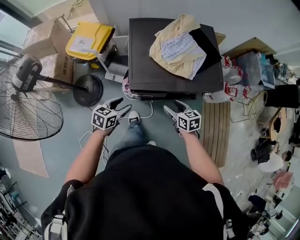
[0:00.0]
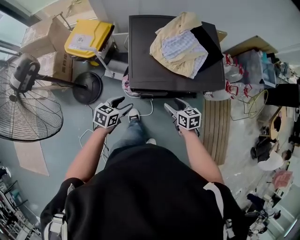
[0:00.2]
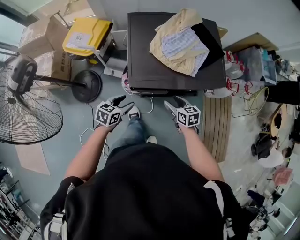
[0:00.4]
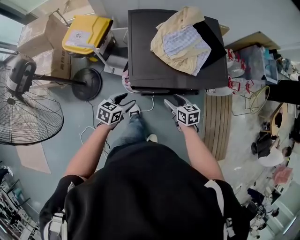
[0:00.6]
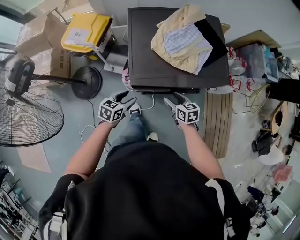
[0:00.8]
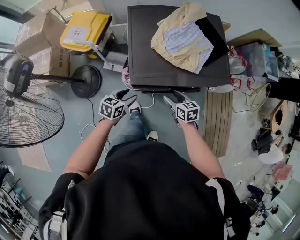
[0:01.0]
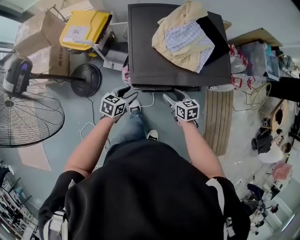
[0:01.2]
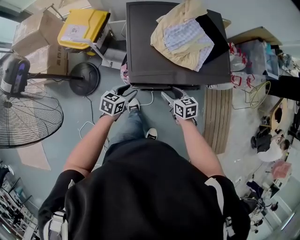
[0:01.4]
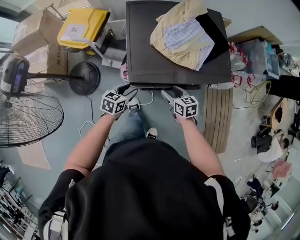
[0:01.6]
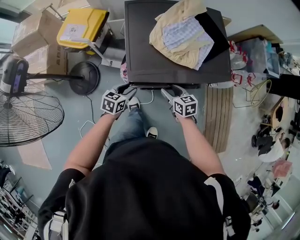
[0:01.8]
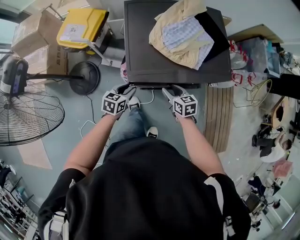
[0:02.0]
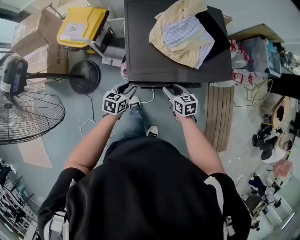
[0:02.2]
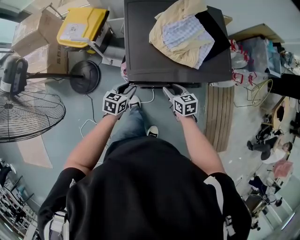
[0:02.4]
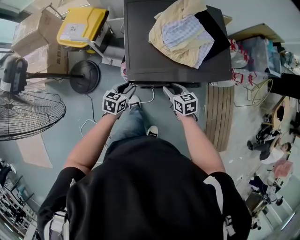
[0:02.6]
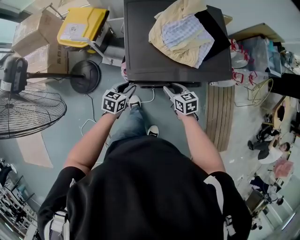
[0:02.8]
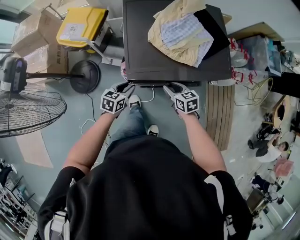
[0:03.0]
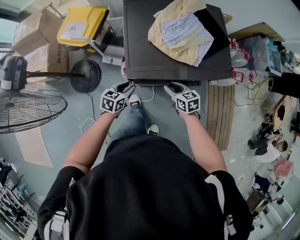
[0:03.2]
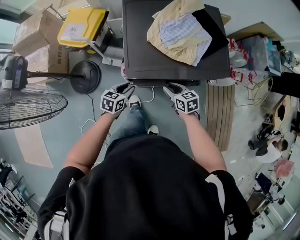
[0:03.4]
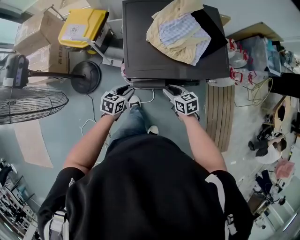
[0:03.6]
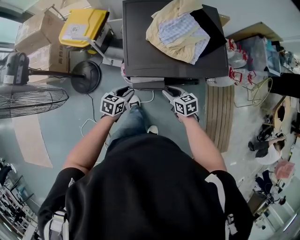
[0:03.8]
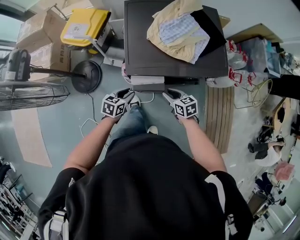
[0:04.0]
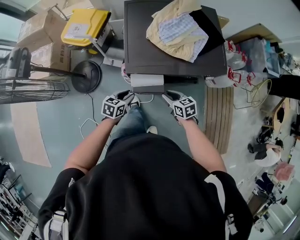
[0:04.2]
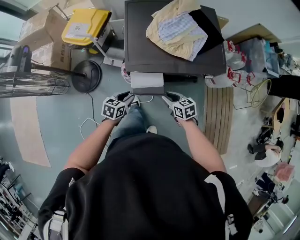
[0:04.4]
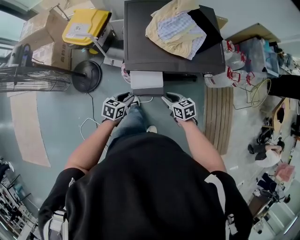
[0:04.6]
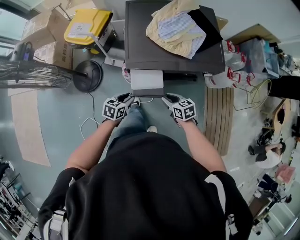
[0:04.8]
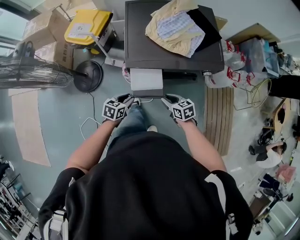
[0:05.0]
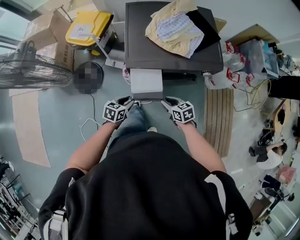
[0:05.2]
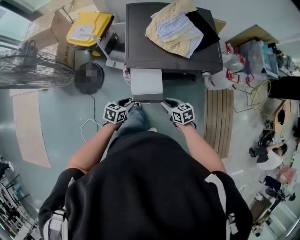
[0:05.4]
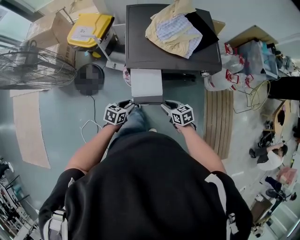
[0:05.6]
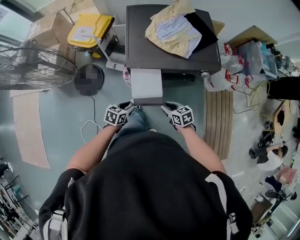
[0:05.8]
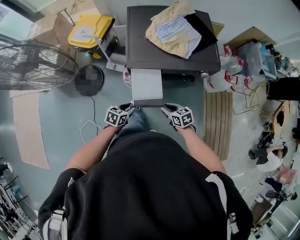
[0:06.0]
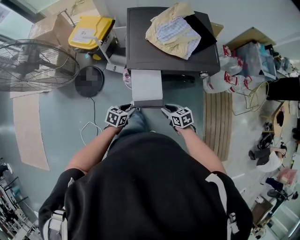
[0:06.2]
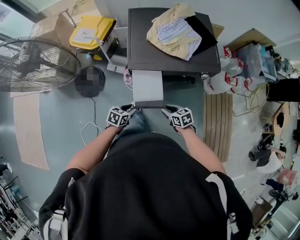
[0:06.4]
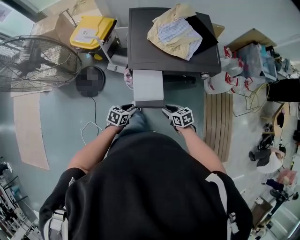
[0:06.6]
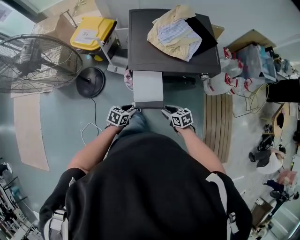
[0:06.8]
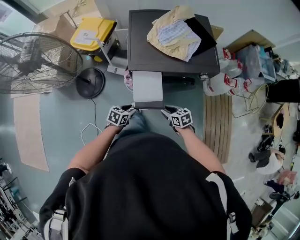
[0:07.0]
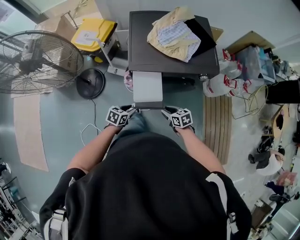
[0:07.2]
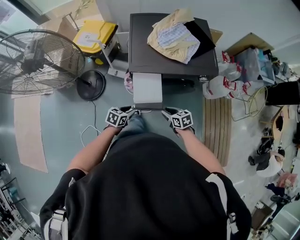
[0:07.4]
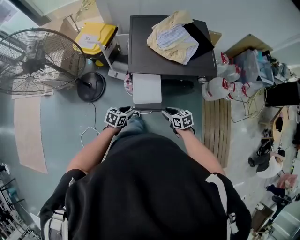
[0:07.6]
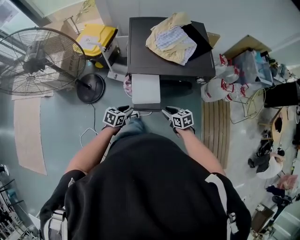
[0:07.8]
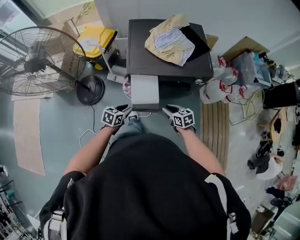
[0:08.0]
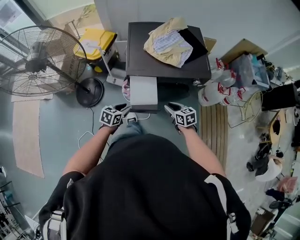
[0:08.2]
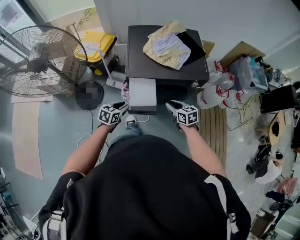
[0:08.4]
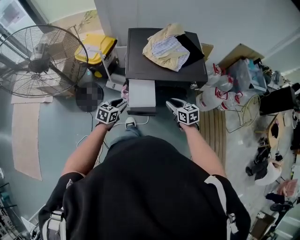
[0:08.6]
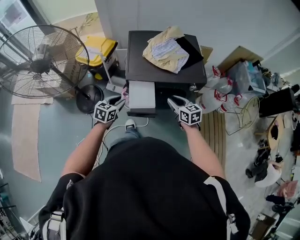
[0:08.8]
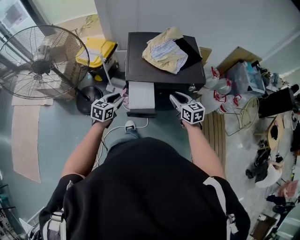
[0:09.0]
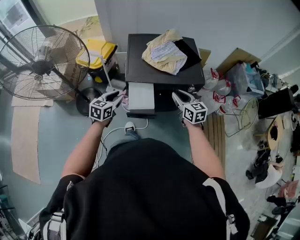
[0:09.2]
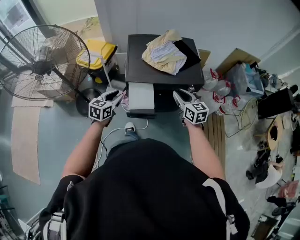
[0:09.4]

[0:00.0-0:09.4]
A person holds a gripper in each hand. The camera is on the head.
0:00.0 to 0:01.6: Both grippers move downward, roughly 5 cm.
0:01.6 to 0:03.2: The right gripper closes its fingers.
0:03.2 to 0:04.8: The grippers both shift backward by approximately 10 cm.
0:04.8 to 0:06.2: Both grippers travel together backward, some 5 cm.
0:06.2 to 0:07.8: The grippers stay close to where they were, moving slightly.
0:07.8 to 0:09.4: Both grippers travel together upward, some 20 cm. The right gripper turns by about 30 degrees, while the left gripper swivels some 30 degrees.

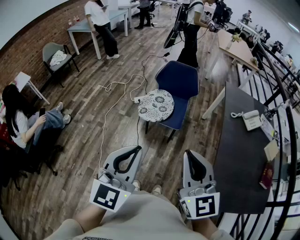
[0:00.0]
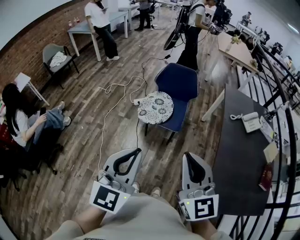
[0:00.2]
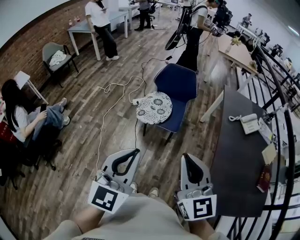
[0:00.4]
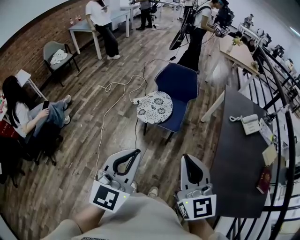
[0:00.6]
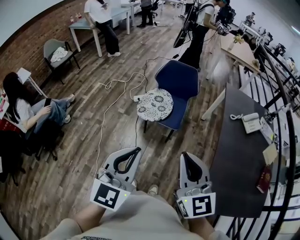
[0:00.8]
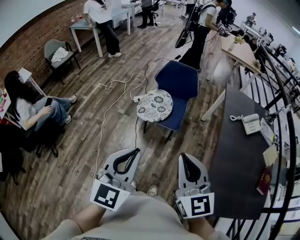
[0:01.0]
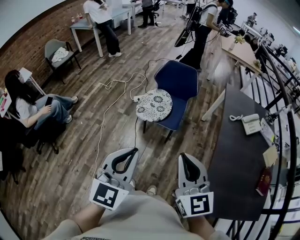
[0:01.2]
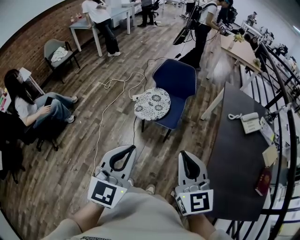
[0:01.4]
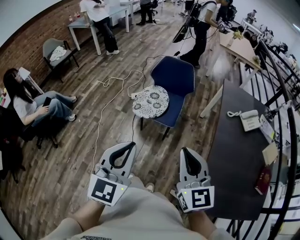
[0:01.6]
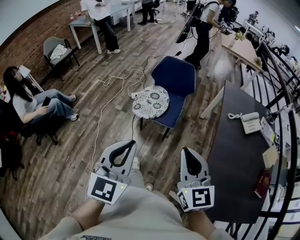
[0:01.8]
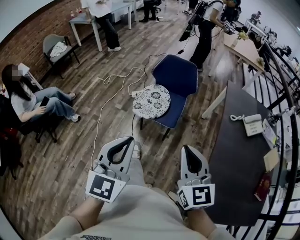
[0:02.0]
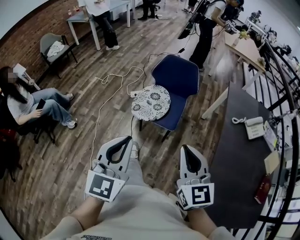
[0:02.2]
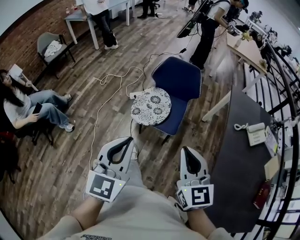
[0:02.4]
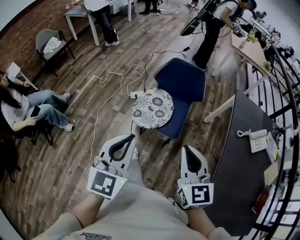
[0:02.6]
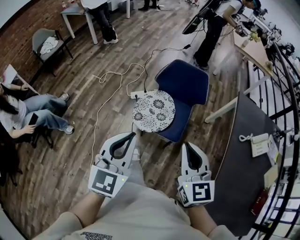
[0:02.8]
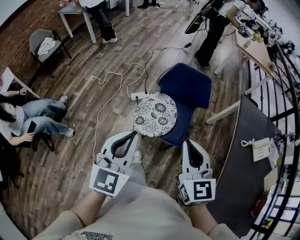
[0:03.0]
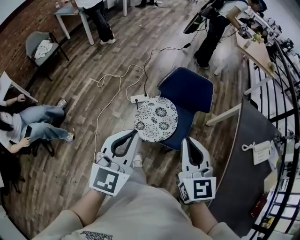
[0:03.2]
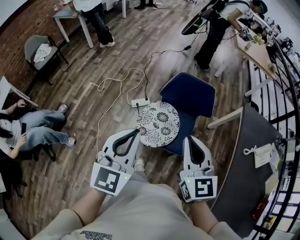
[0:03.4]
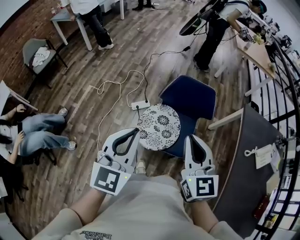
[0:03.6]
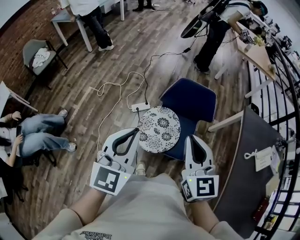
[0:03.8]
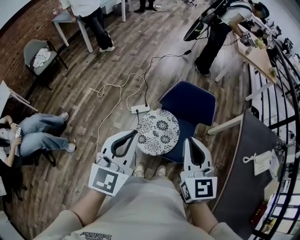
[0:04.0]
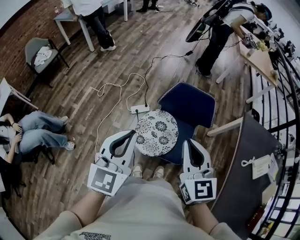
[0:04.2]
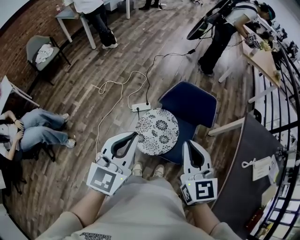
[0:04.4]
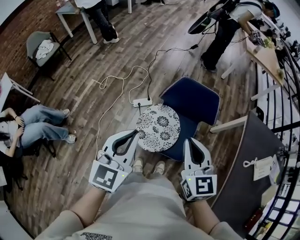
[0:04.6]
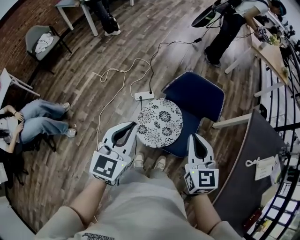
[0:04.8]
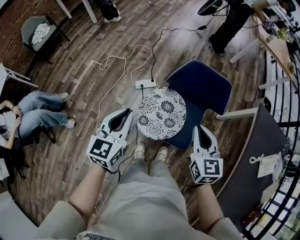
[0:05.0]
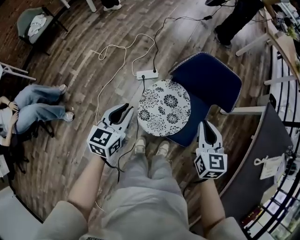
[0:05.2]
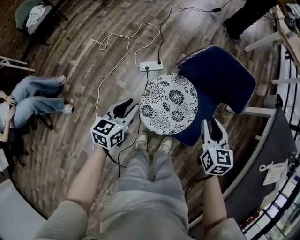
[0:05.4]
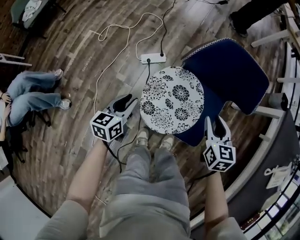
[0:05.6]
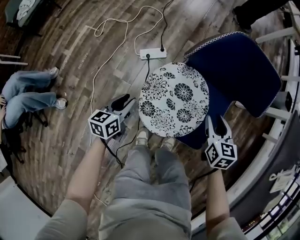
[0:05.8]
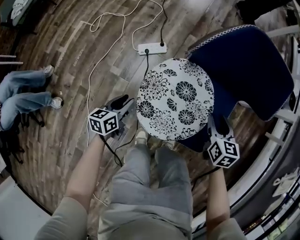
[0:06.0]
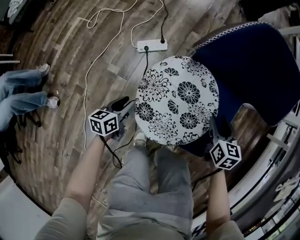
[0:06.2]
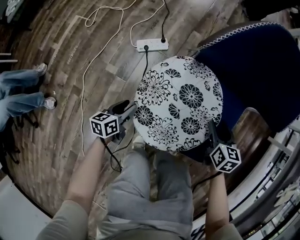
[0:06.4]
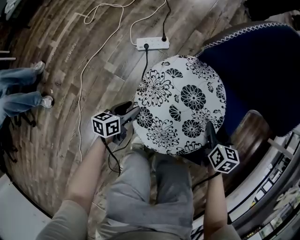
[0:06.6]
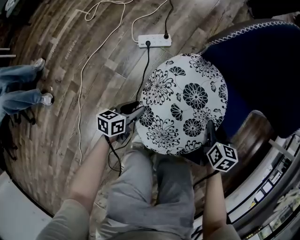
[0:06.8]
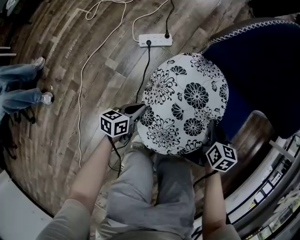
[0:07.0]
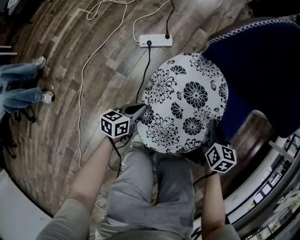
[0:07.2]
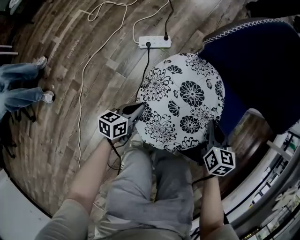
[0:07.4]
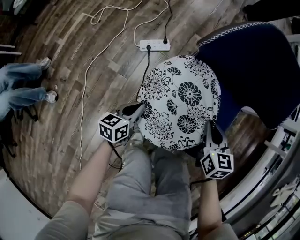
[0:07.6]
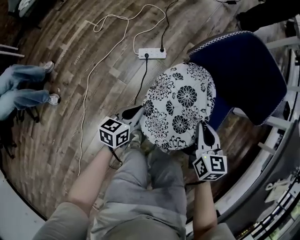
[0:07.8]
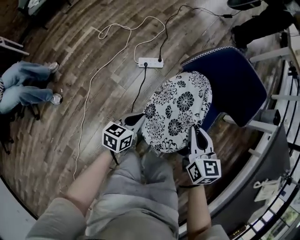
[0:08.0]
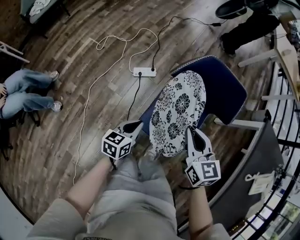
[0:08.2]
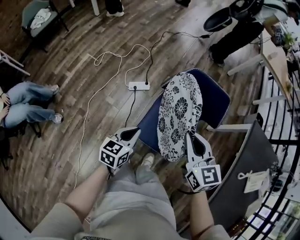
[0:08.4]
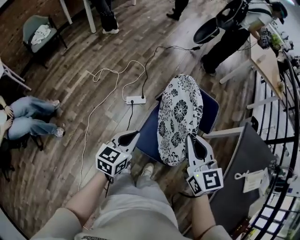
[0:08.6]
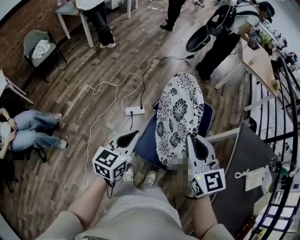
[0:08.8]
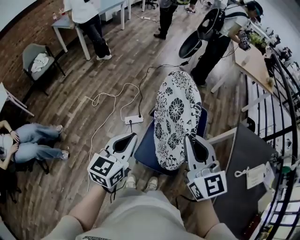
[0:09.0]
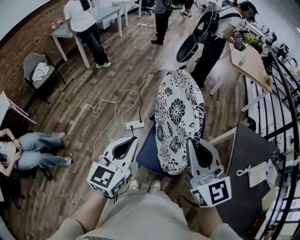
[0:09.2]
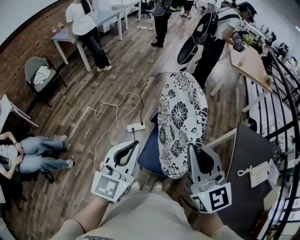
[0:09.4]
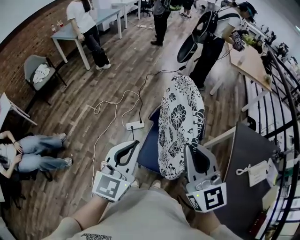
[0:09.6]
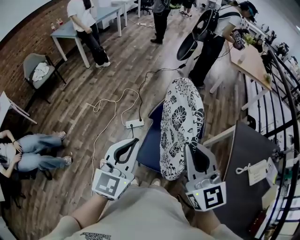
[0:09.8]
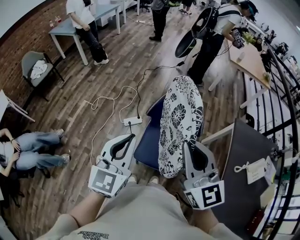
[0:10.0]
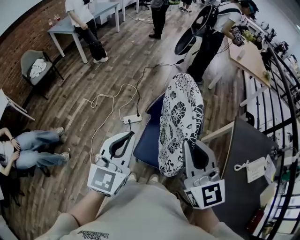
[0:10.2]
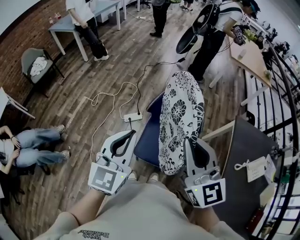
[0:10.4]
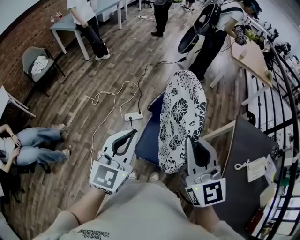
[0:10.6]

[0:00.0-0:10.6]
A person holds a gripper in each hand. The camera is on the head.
0:00.0 to 0:01.6: The left gripper shifts some 5 cm to the right; the right gripper is displaced to the right and downward by some 10 cm.
0:01.6 to 0:03.0: Both grippers move forward, approximately 35 cm.
0:03.0 to 0:04.6: Both grippers travel together forward, some 15 cm.
0:04.6 to 0:06.0: Both grippers travel together downward, about 60 cm. The left gripper rolls counterclockwise, seen from behind, by roughly 40 degrees, and opens; the right gripper rotates roughly 30 degrees, and opens up.
0:06.0 to 0:07.6: The left gripper goes roughly 5 cm to the right, goes downward and returns, about 15 cm each way, and closes its fingers. The right gripper reaches approximately 15 cm downward, then returns, and closes its fingers.
0:07.6 to 0:09.0: Both grippers travel together upward, about 60 cm. The left gripper rotates some 30 degrees, while the right gripper tilts its fingers about 40 degrees upward.
0:09.0 to 0:10.6: The left gripper moves upward, approximately 5 cm; the right gripper shifts by roughly 5 cm.

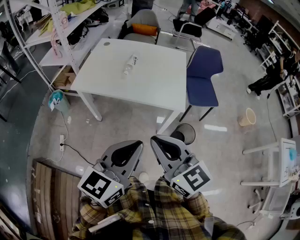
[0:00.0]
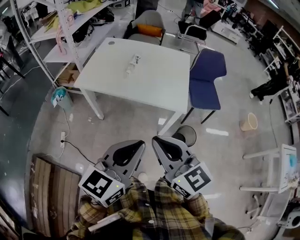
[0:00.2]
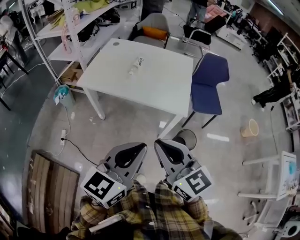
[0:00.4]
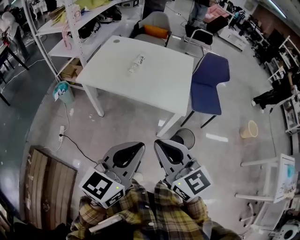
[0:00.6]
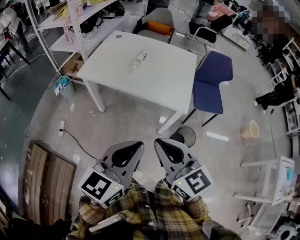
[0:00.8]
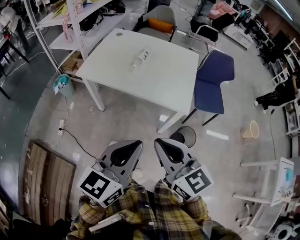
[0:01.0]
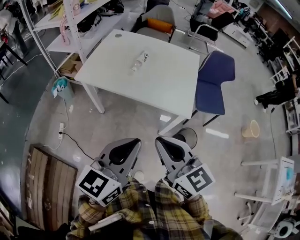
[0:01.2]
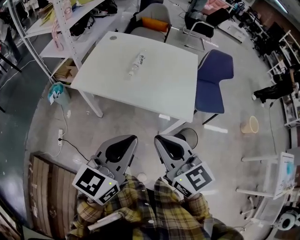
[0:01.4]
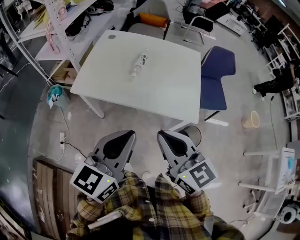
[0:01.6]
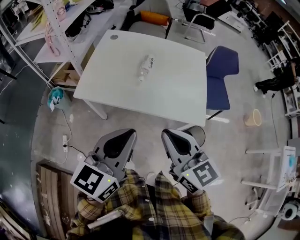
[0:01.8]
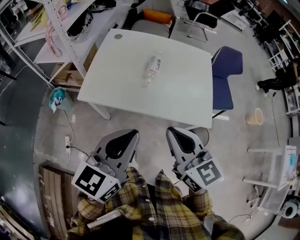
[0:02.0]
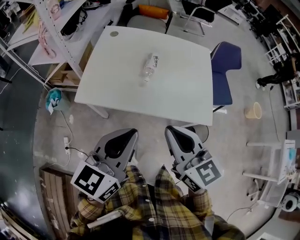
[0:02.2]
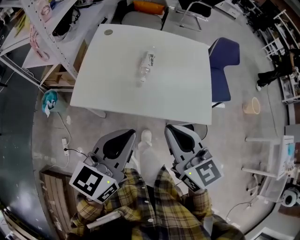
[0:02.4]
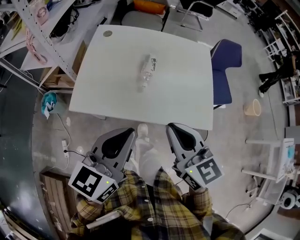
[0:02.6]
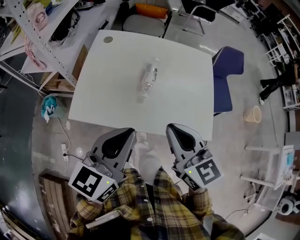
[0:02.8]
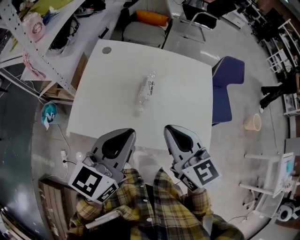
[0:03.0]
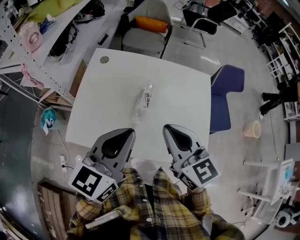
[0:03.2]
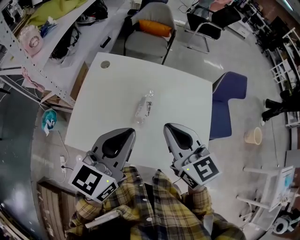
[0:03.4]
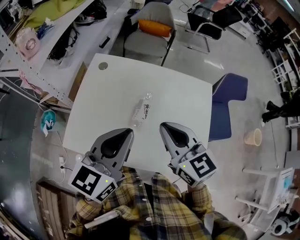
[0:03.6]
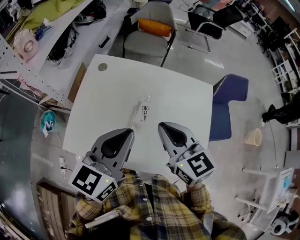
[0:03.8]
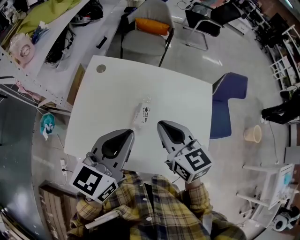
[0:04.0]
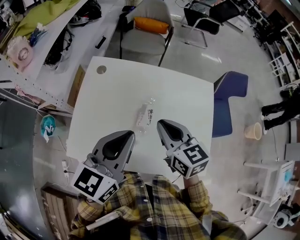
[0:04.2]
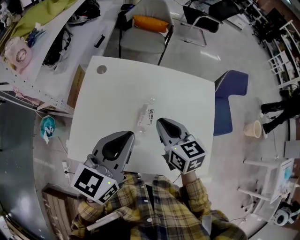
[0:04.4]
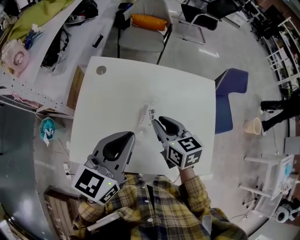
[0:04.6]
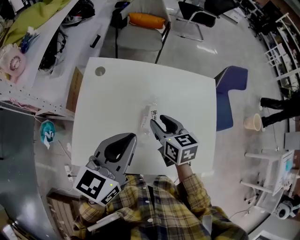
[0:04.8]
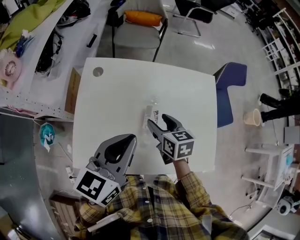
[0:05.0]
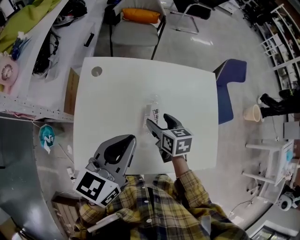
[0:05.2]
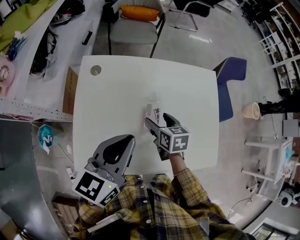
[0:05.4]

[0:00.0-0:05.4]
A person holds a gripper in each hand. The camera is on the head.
0:00.0 to 0:01.4: Both grippers travel together forward, approximately 10 cm.
0:01.4 to 0:02.8: The two grippers go approximately 25 cm forward and to the left.
0:02.8 to 0:04.0: The two grippers go some 20 cm forward.
0:04.0 to 0:05.4: The right gripper moves downward, about 20 cm, turns by some 40 degrees, and opens up; the left gripper goes roughly 5 cm to the left.
